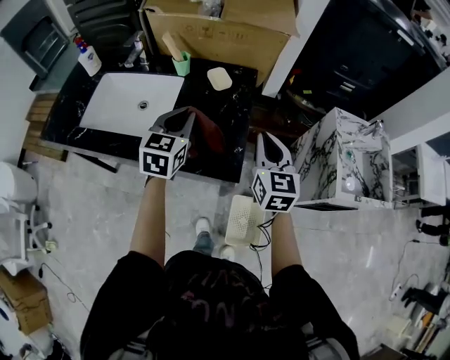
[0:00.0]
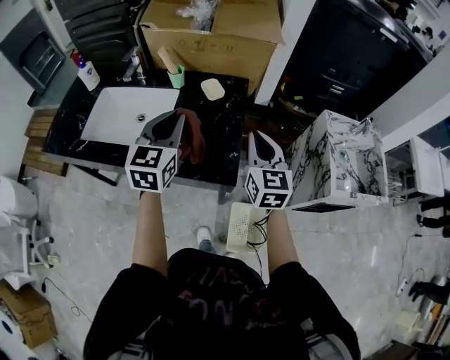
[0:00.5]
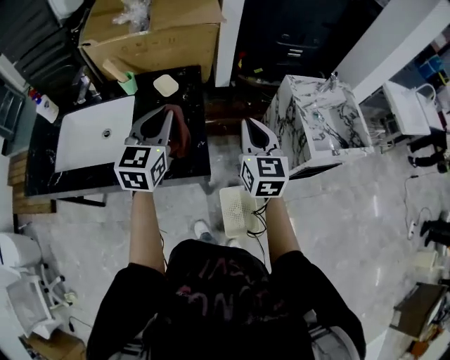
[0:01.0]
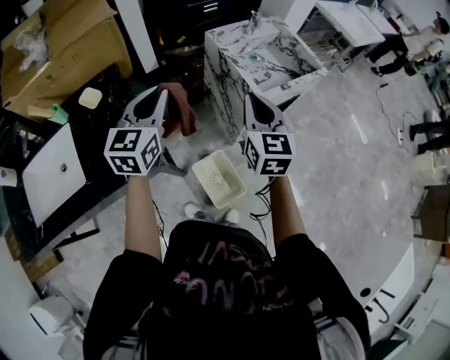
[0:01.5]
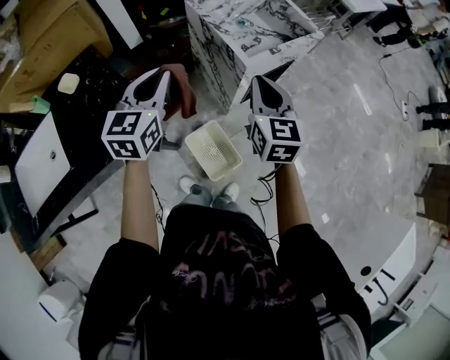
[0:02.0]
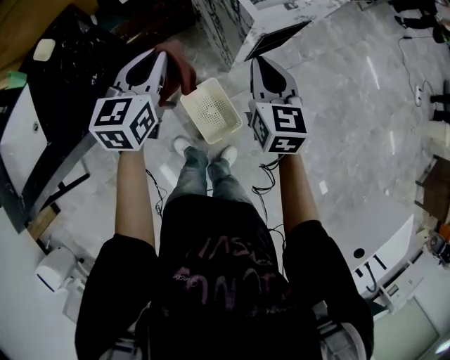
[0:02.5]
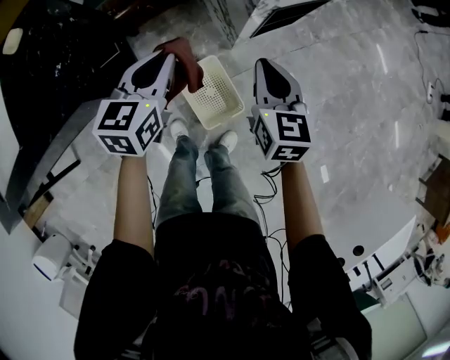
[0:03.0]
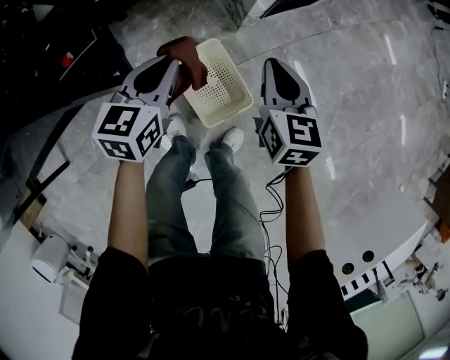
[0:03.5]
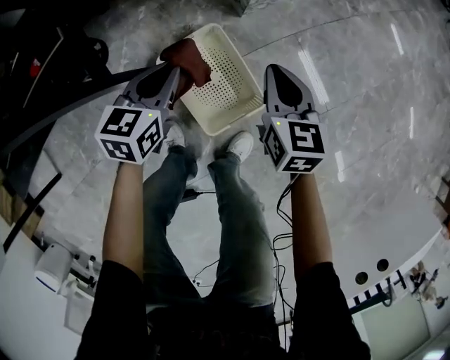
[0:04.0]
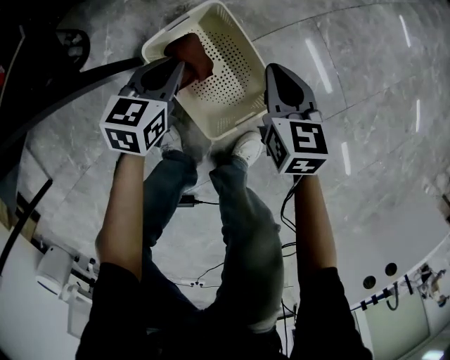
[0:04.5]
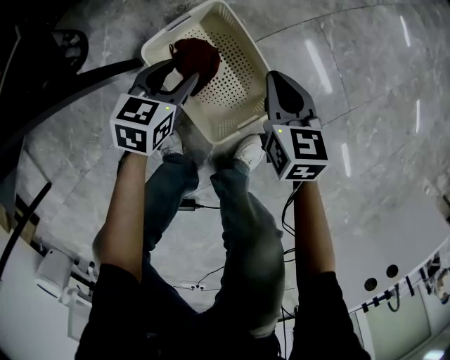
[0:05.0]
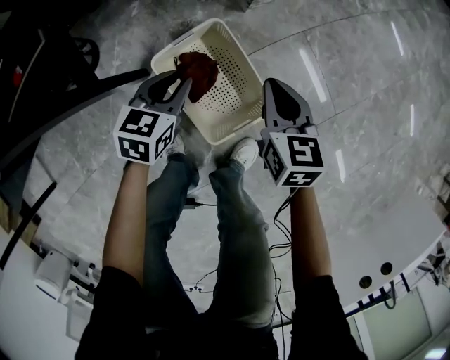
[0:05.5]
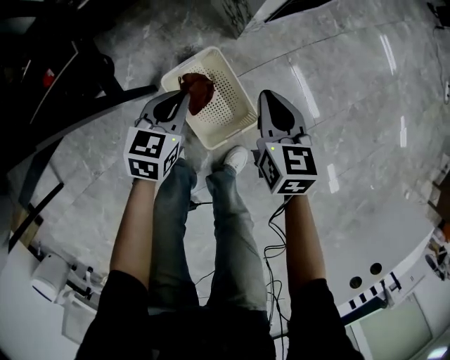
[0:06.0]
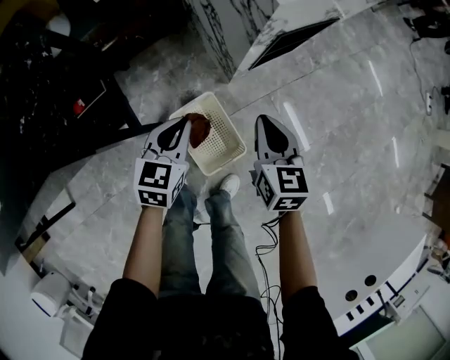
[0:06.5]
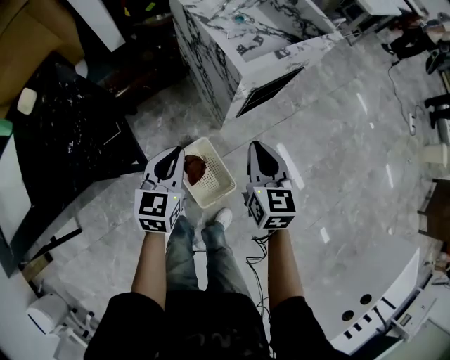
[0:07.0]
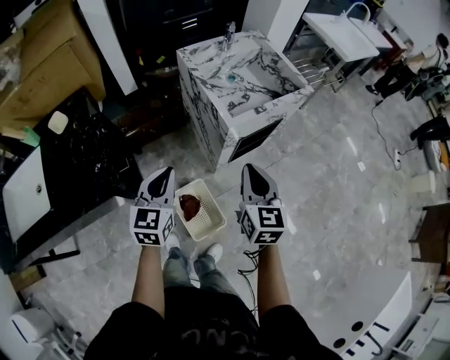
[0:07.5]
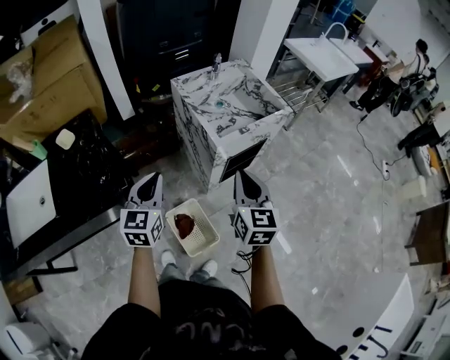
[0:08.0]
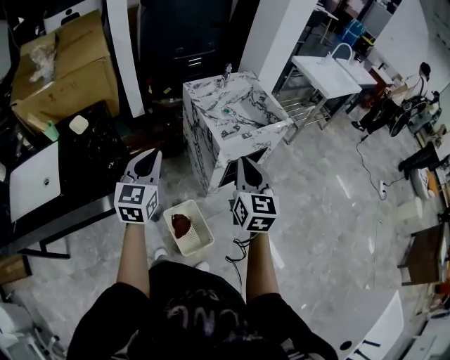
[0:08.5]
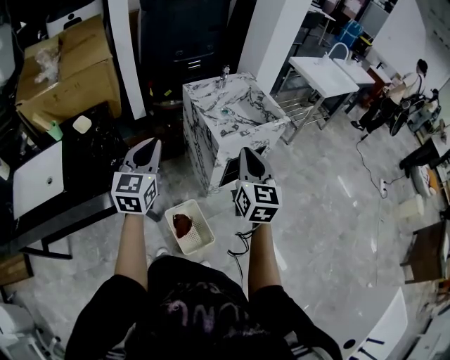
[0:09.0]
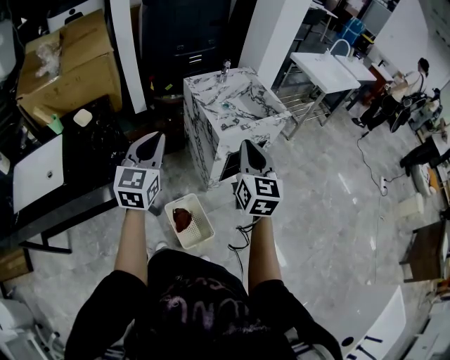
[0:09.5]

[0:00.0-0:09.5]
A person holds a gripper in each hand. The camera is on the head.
0:00.0 to 0:02.0: The right gripper ends up about 40 cm from where it was, and swivels some 40 degrees; the left gripper moves approximately 10 cm upward and comes back, and turns by about 40 degrees.
0:02.0 to 0:04.0: Both grippers travel together downward, about 60 cm. The right gripper swivels some 20 degrees, while the left gripper turns by approximately 30 degrees.
0:04.0 to 0:05.5: The two grippers go approximately 10 cm downward. The left gripper opens and closes again.
0:05.5 to 0:07.5: The two grippers go roughly 60 cm upward. The right gripper swivels some 20 degrees. Meanwhile the left gripper turns by some 30 degrees.
0:07.5 to 0:09.5: The two grippers go about 20 cm upward.

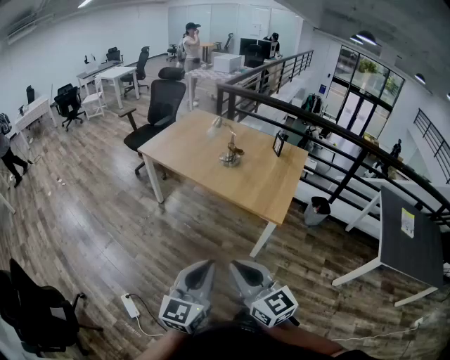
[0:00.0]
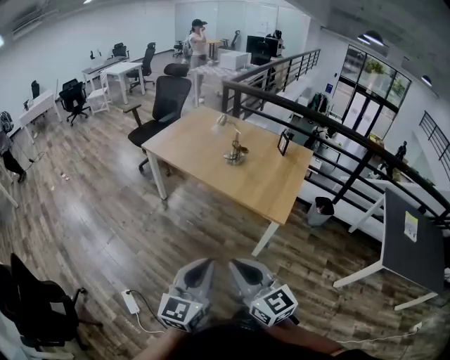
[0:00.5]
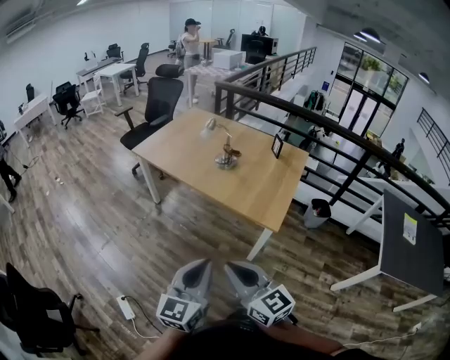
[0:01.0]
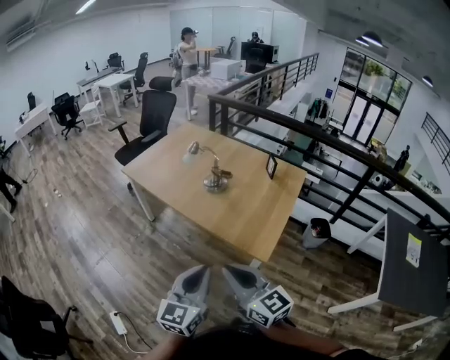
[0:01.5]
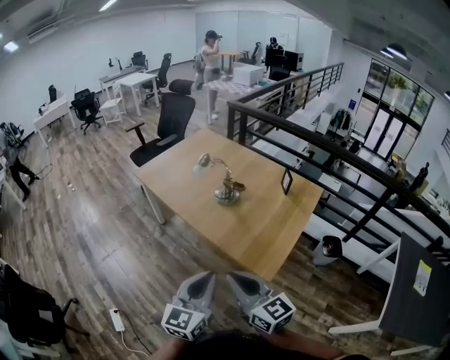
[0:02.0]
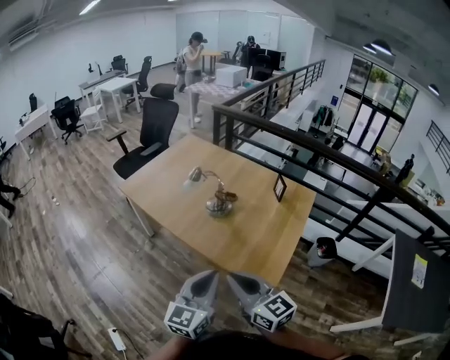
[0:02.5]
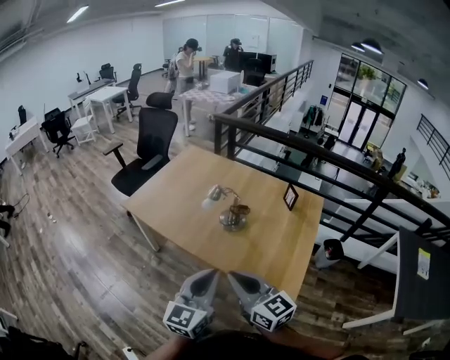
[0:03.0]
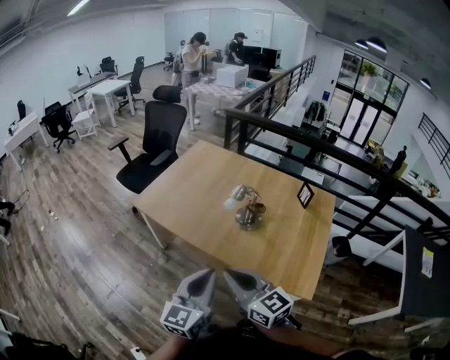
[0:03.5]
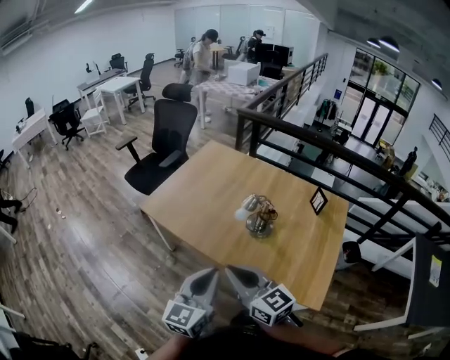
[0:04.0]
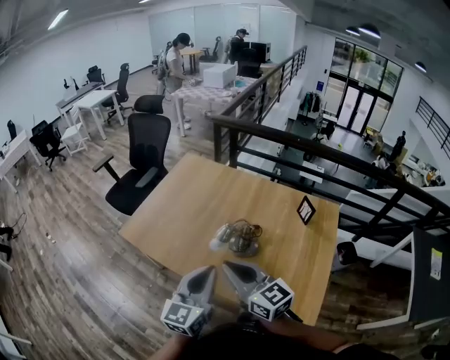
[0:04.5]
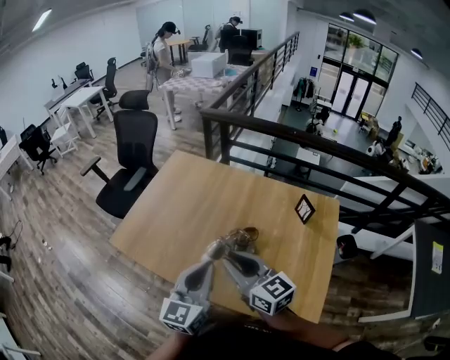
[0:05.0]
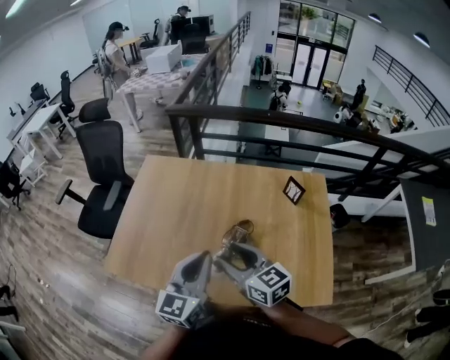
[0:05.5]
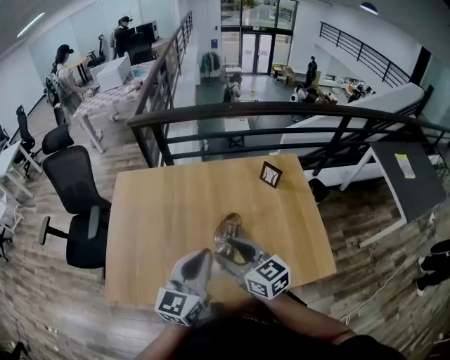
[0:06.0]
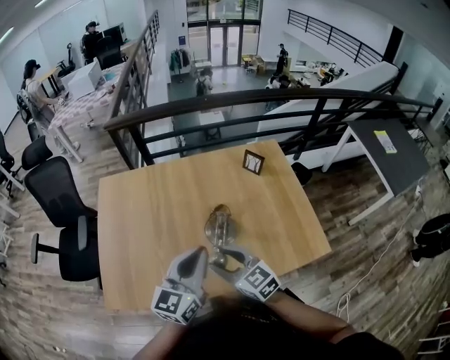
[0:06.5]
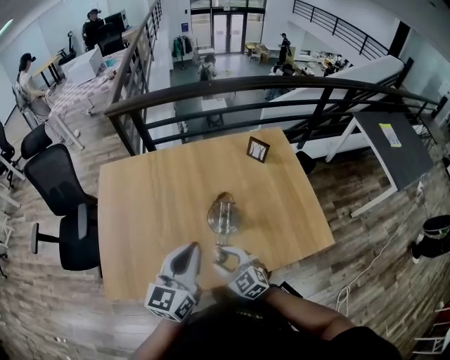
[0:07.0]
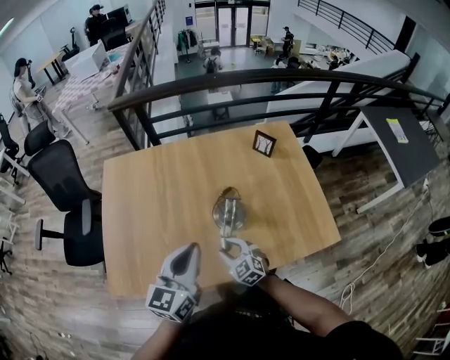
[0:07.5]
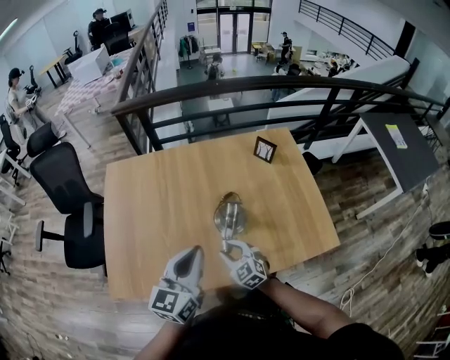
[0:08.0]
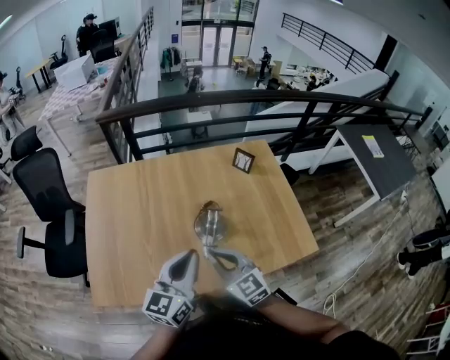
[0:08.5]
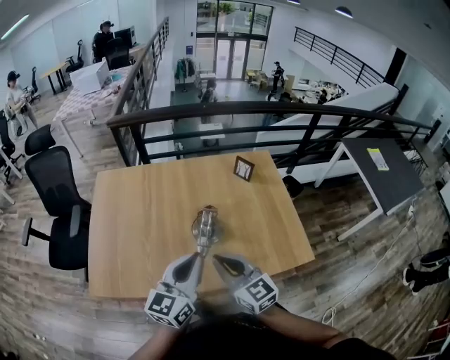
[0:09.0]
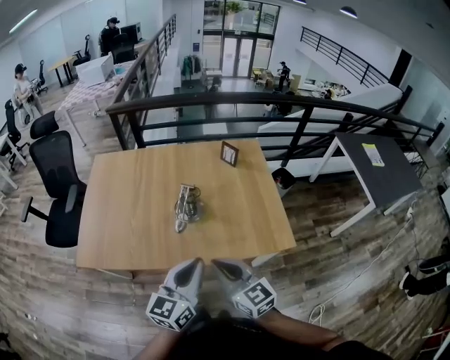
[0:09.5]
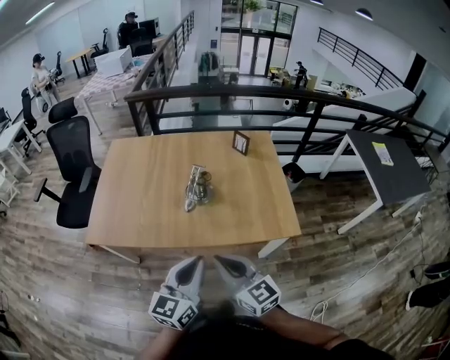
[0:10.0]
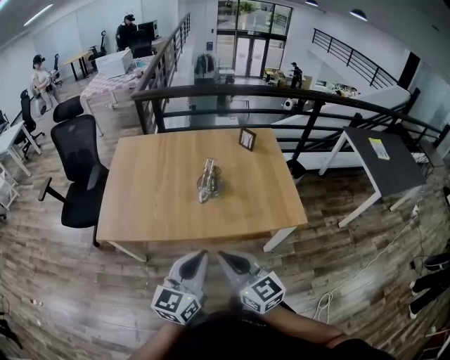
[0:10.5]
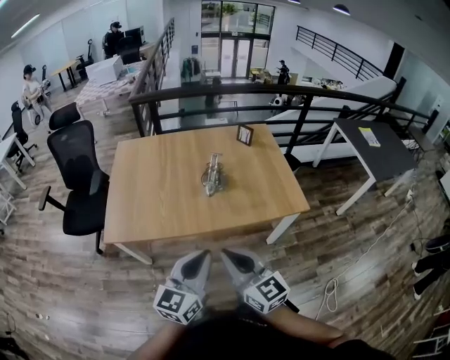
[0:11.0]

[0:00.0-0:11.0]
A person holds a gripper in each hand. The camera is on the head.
0:00.0 to 0:02.0: The grippers both shift forward and to the right by some 30 cm.
0:02.0 to 0:03.5: Both grippers move forward and to the left, about 30 cm.
0:03.5 to 0:05.5: The grippers both shift forward by some 35 cm. The right gripper swivels some 20 degrees, and opens up.
0:05.5 to 0:07.5: The left gripper heads to the left, covering roughly 5 cm, and swivels roughly 20 degrees; the right gripper is displaced downward by some 25 cm, and changes its angle by some 40 degrees.
0:07.5 to 0:09.0: The left gripper goes approximately 10 cm to the right and backward. Meanwhile the right gripper travels upward by about 25 cm, rotates some 30 degrees, and closes.
0:09.0 to 0:11.0: The grippers both shift backward by some 30 cm.

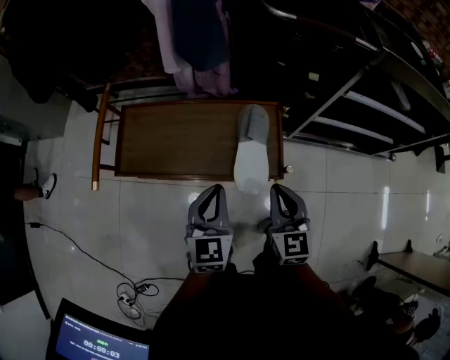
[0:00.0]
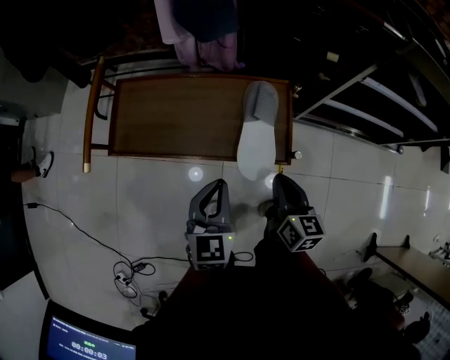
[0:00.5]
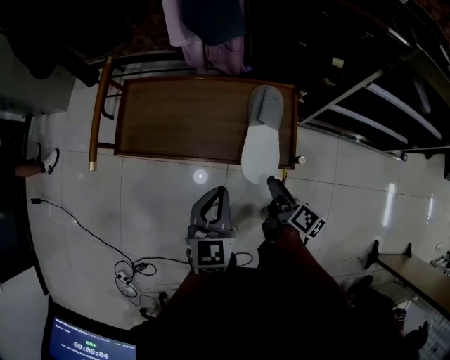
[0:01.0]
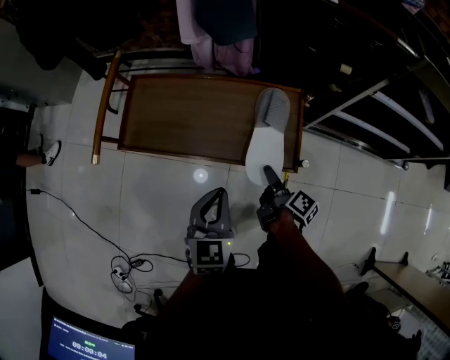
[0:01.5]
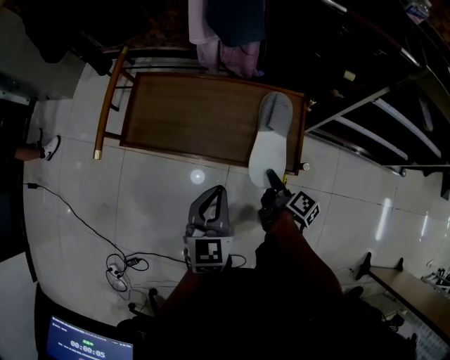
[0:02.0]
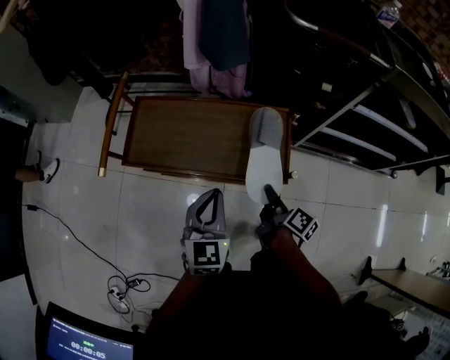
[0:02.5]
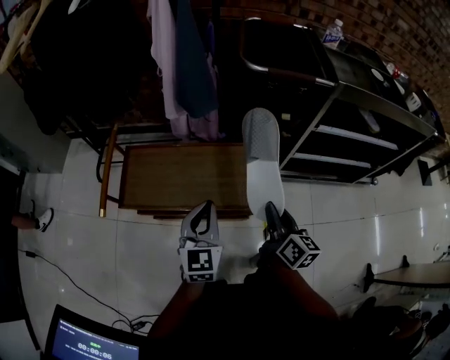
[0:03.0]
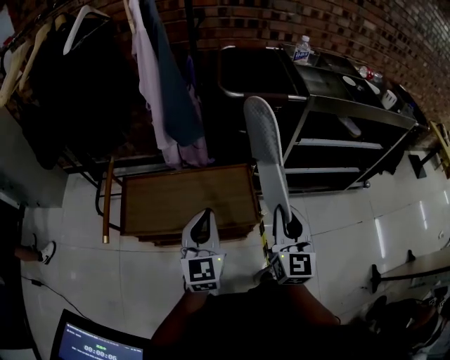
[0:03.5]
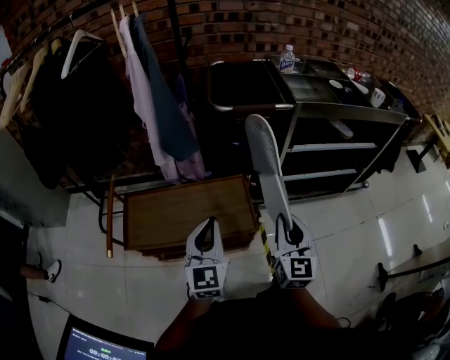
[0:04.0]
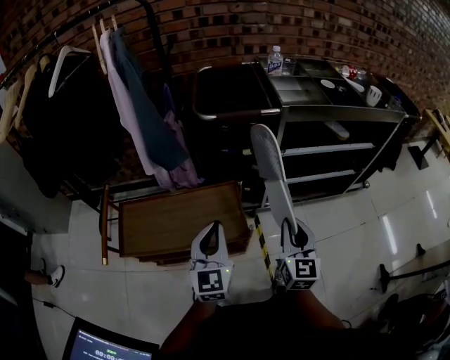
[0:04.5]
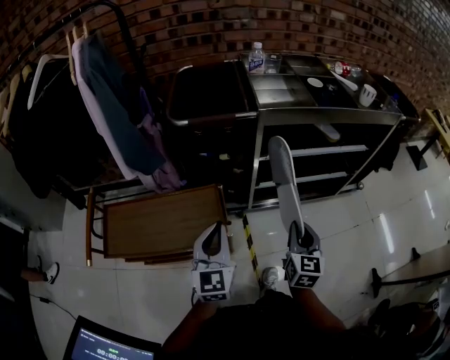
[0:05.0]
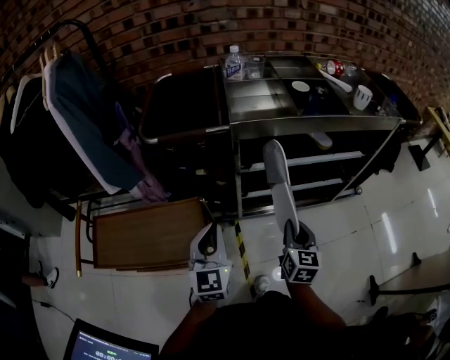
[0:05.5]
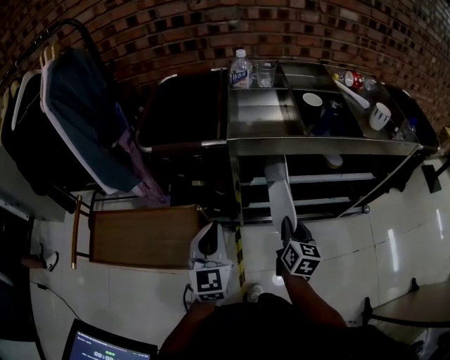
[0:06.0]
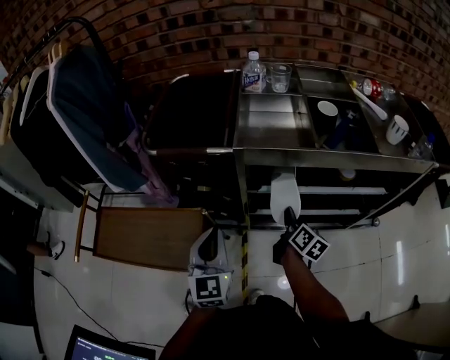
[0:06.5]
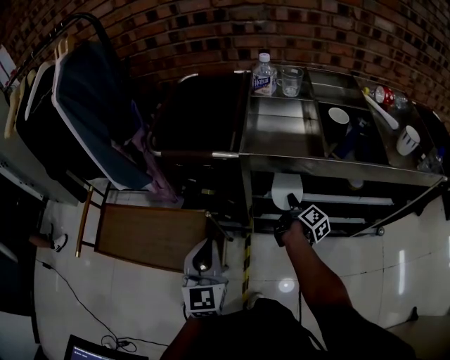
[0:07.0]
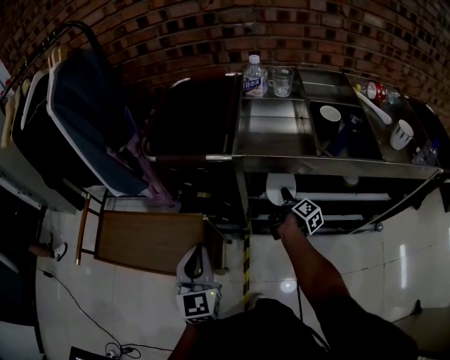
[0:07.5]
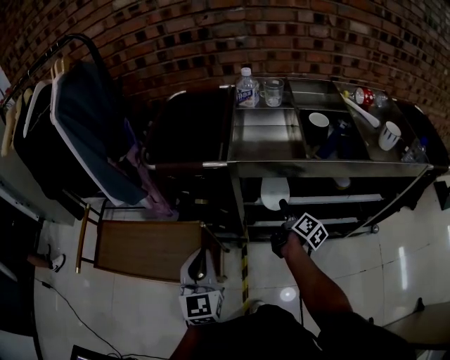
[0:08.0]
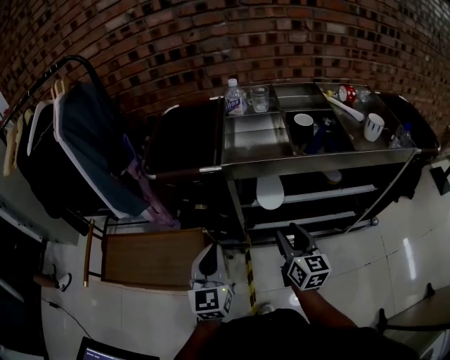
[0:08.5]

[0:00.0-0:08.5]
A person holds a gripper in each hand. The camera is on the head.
0:00.0 to 0:02.0: The right gripper shifts roughly 20 cm downward, twists some 80 degrees clockwise, seen from behind, and opens and closes again.
0:02.0 to 0:04.0: The left gripper travels upward by about 20 cm, and turns by about 30 degrees, while the right gripper shifts about 35 cm upward, and rolls counterclockwise, seen from behind, by roughly 70 degrees.
0:04.0 to 0:06.5: The right gripper heads forward, to the right and downward, covering about 40 cm, and rotates around the line of its fingers by some 50 degrees, clockwise from behind. The left gripper goes some 30 cm to the right and forward.
0:06.5 to 0:08.5: The right gripper shifts some 15 cm upward and backward, turns by about 30 degrees, and opens up.
